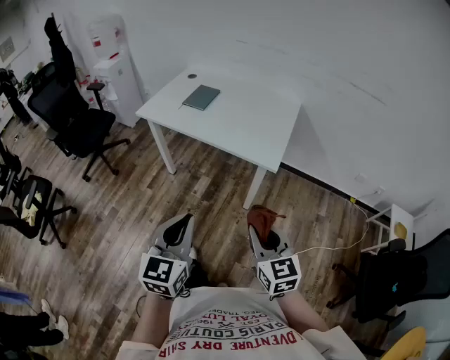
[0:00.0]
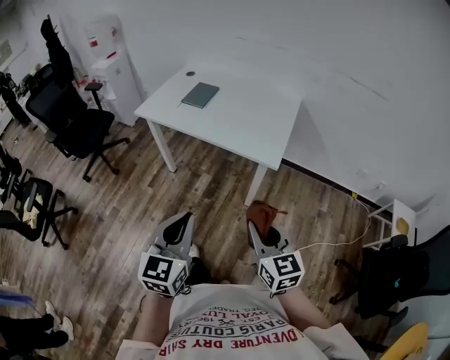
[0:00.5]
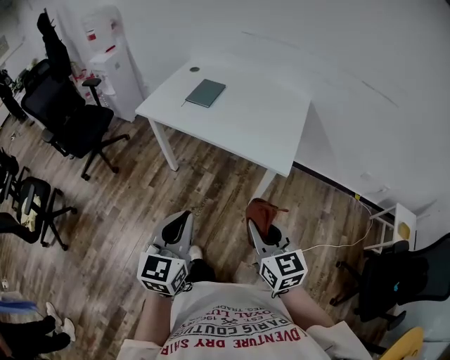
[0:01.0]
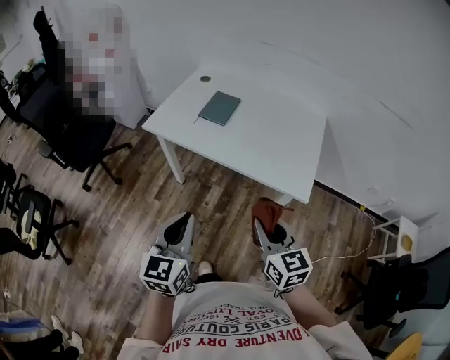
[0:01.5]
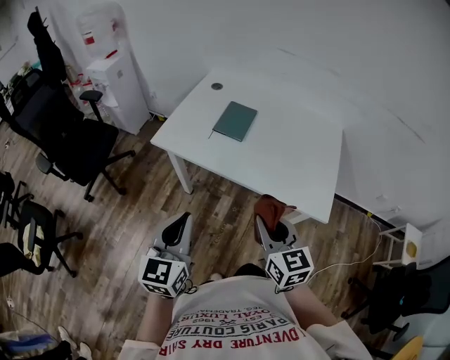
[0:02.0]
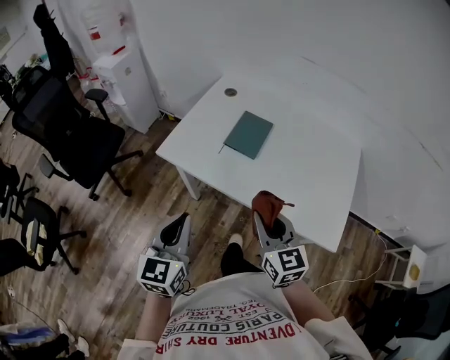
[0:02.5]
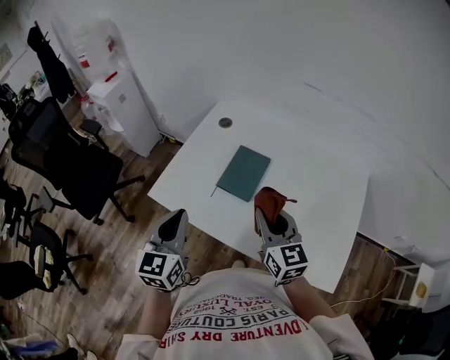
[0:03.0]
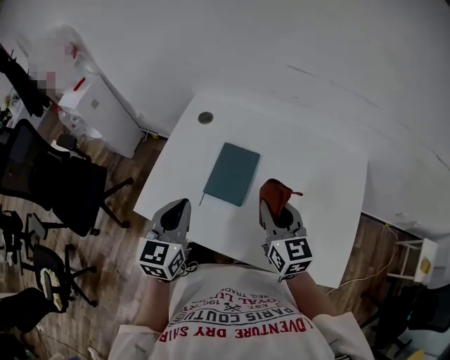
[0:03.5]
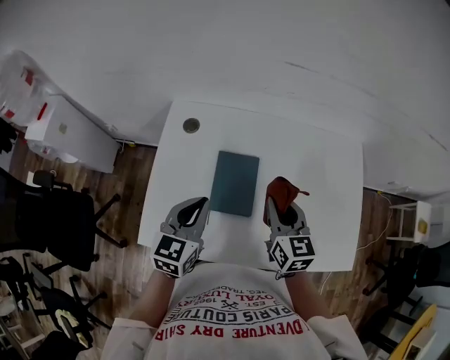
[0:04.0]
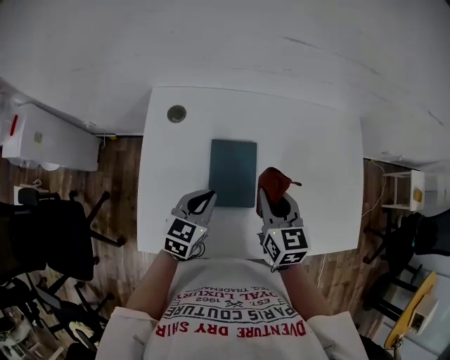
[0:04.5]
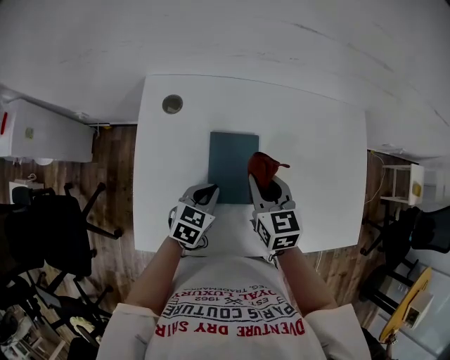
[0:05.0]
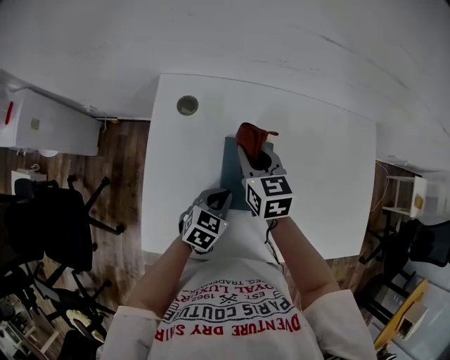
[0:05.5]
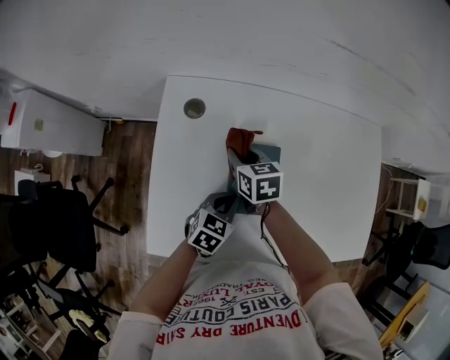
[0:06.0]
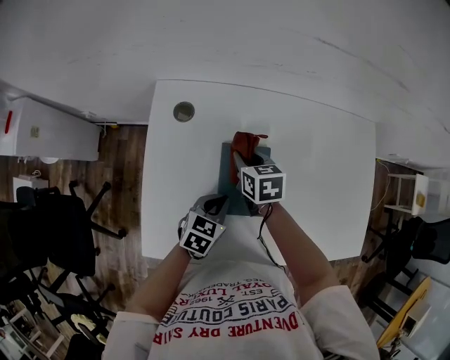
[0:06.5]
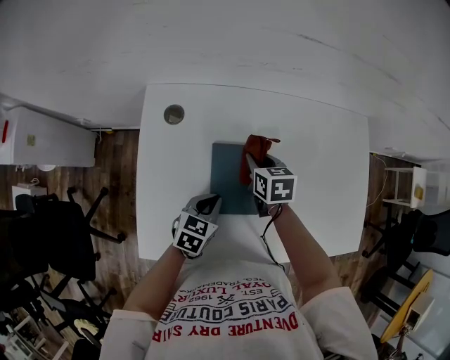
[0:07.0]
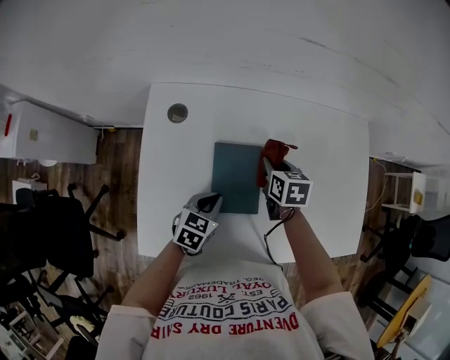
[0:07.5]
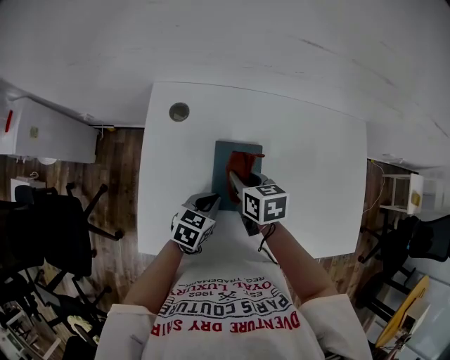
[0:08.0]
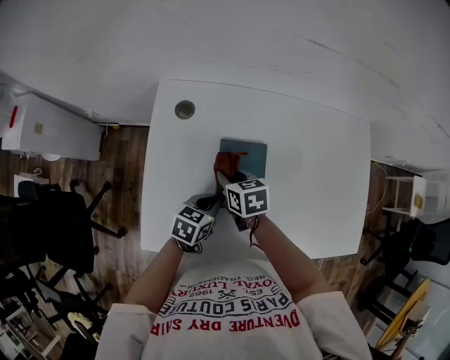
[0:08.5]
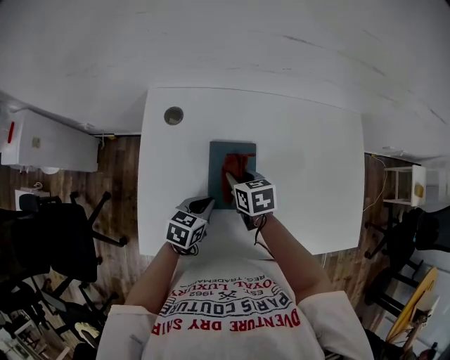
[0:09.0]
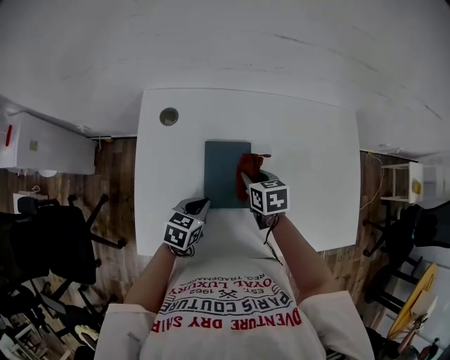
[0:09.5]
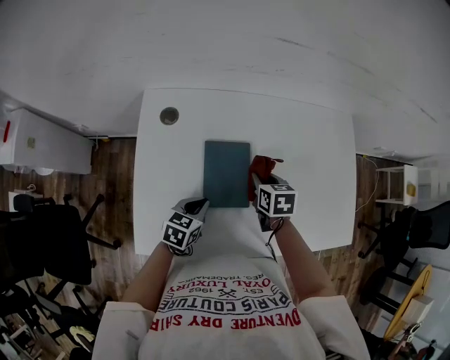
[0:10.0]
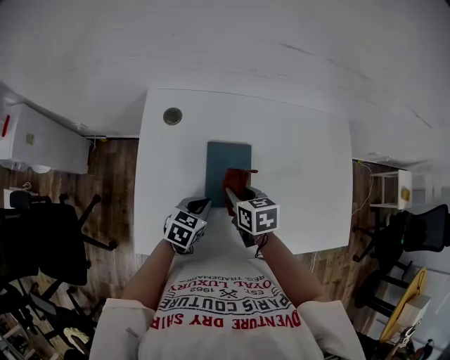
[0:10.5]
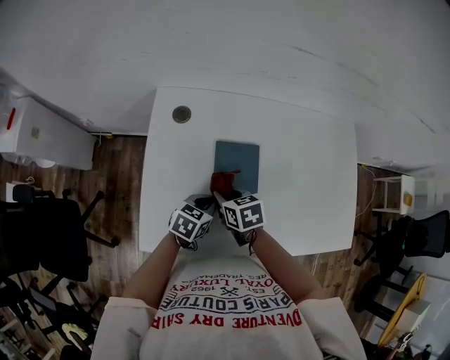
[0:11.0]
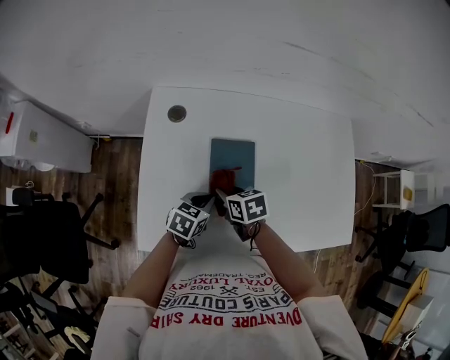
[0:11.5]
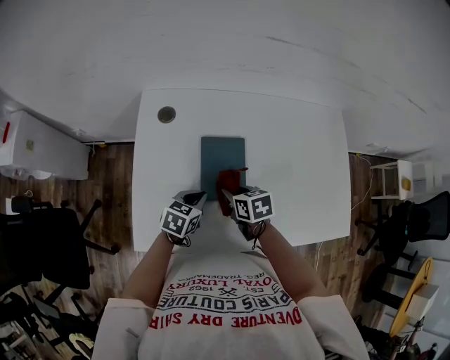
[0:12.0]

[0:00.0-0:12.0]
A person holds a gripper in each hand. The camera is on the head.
0:00.0 to 0:02.0: The grippers both shift forward and to the left by roughly 40 cm.
0:02.0 to 0:04.0: Both grippers are carried roughly 50 cm. The left gripper changes its angle by some 30 degrees. The right gripper rotates roughly 20 degrees.
0:04.0 to 0:06.0: The right gripper moves to the left, downward and forward, roughly 25 cm, and turns by roughly 30 degrees, while the left gripper goes about 20 cm downward, and rotates about 30 degrees.
0:06.0 to 0:08.0: The right gripper heads to the right and backward, covering roughly 10 cm.
0:08.0 to 0:10.0: The right gripper moves to the right, some 10 cm.
0:10.0 to 0:12.0: The right gripper travels to the left and backward by some 10 cm.

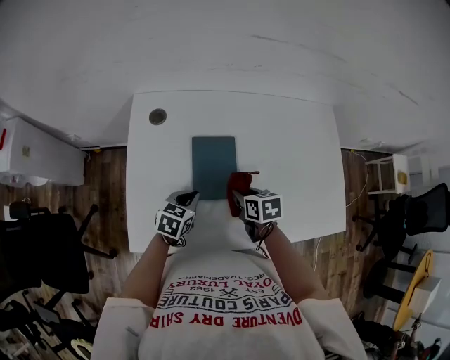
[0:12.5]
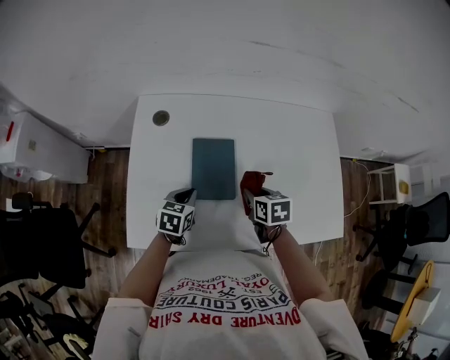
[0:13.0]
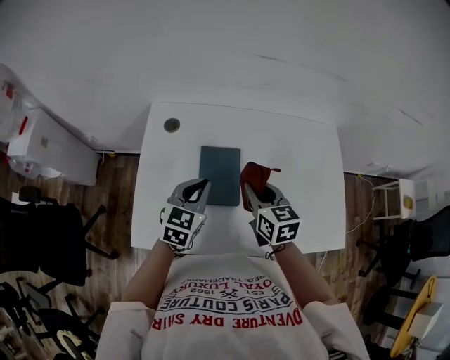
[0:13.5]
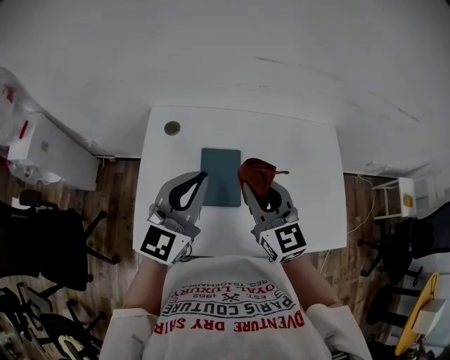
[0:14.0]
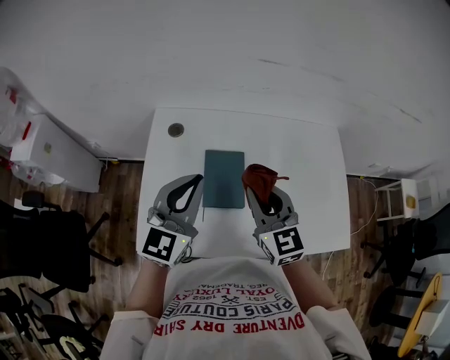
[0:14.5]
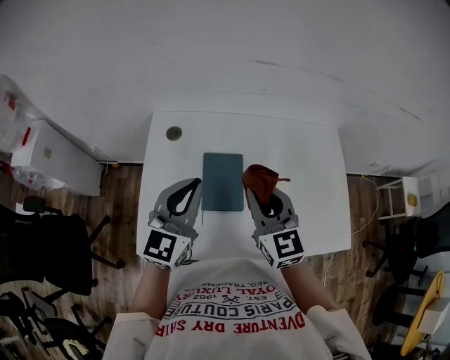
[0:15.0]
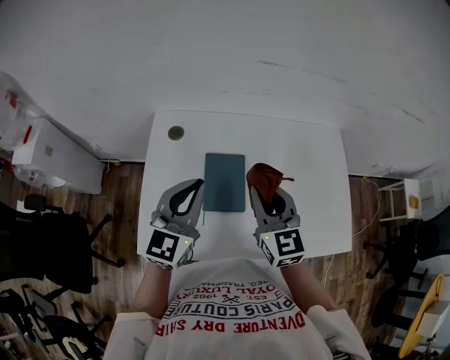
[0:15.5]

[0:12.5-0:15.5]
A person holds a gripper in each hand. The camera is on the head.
0:12.5 to 0:14.0: Both grippers travel together upward, roughly 30 cm. The right gripper tips its fingers upward by some 40 degrees, while the left gripper tilts its fingers approximately 50 degrees upward.
0:14.0 to 0:15.5: The grippers stay close to where they were, moving slightly.

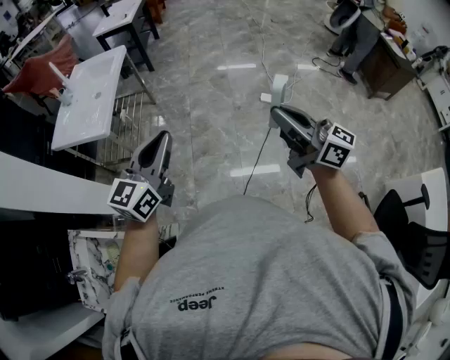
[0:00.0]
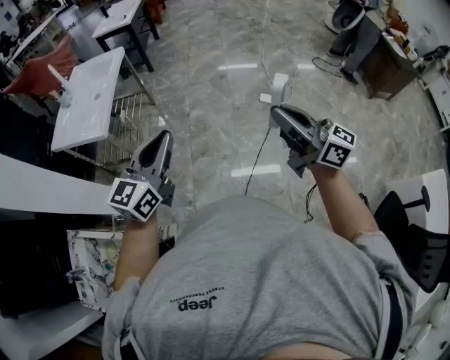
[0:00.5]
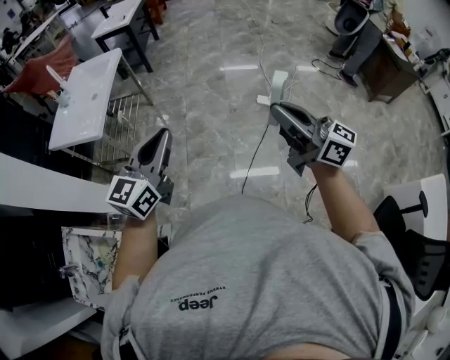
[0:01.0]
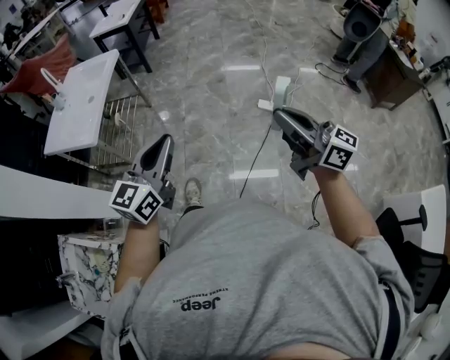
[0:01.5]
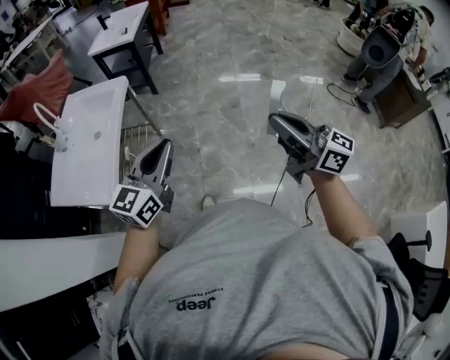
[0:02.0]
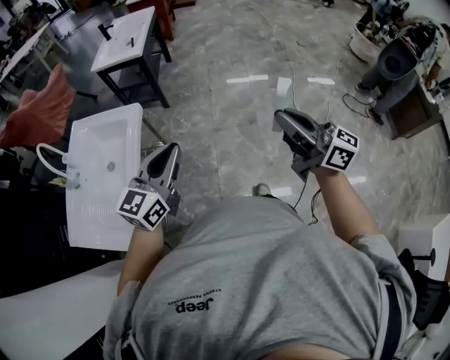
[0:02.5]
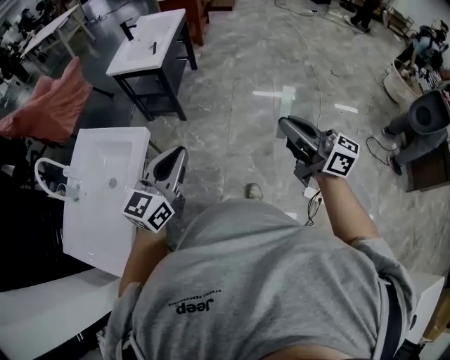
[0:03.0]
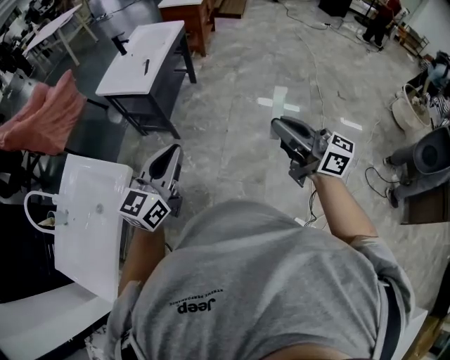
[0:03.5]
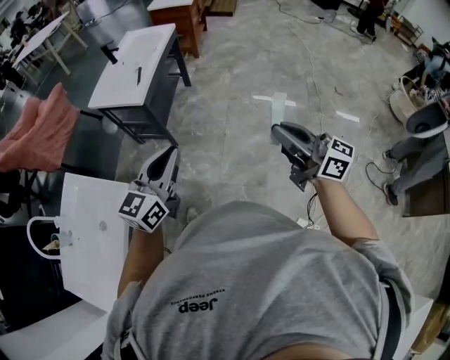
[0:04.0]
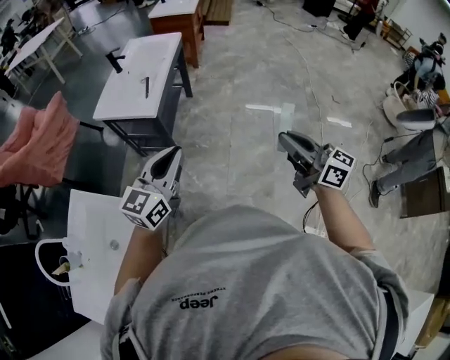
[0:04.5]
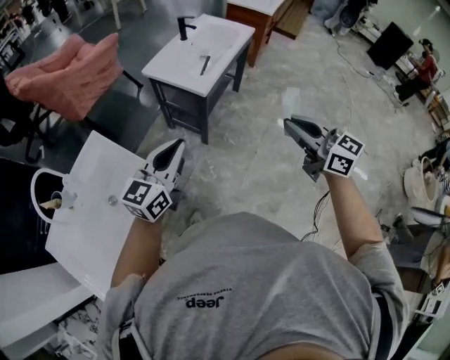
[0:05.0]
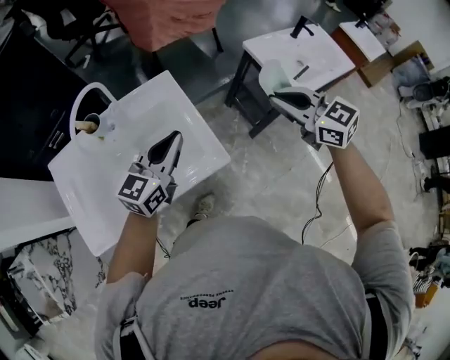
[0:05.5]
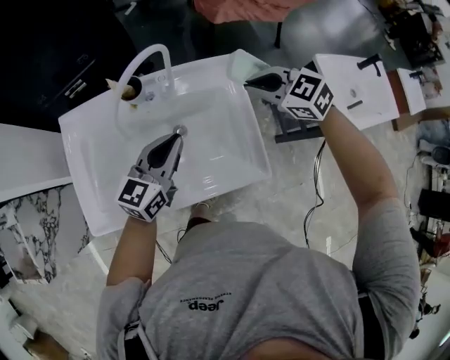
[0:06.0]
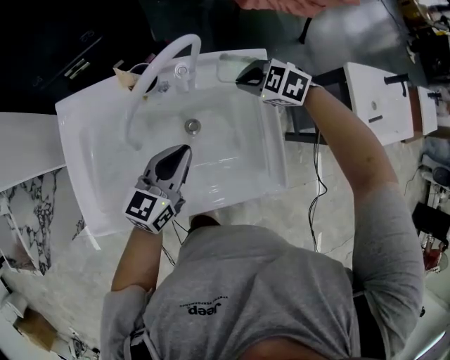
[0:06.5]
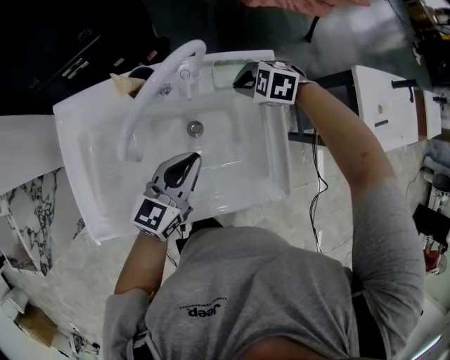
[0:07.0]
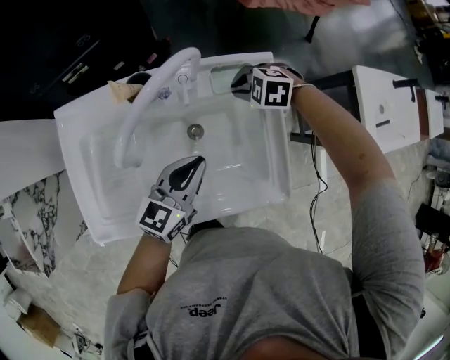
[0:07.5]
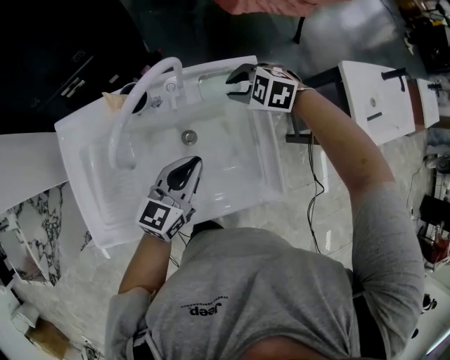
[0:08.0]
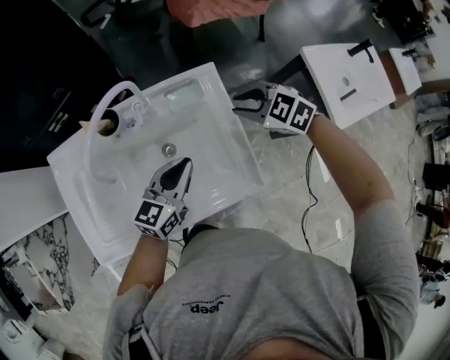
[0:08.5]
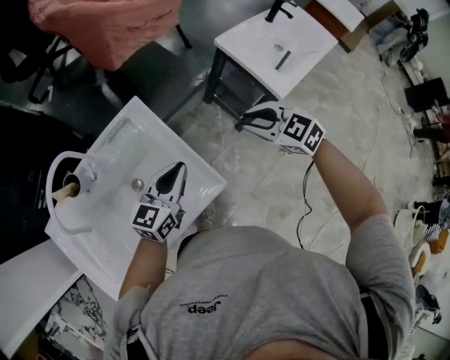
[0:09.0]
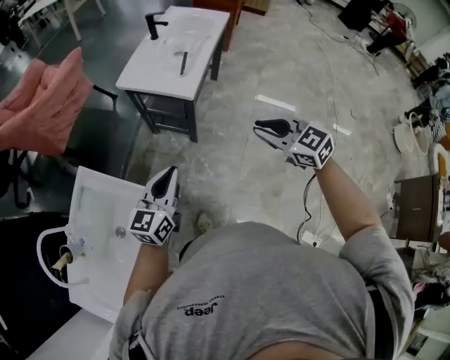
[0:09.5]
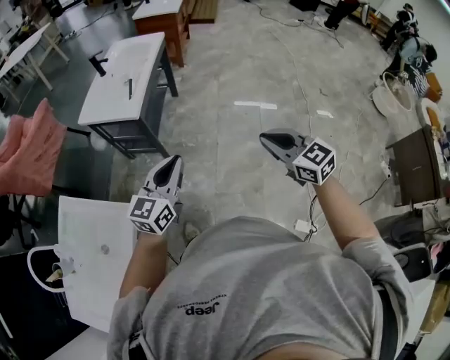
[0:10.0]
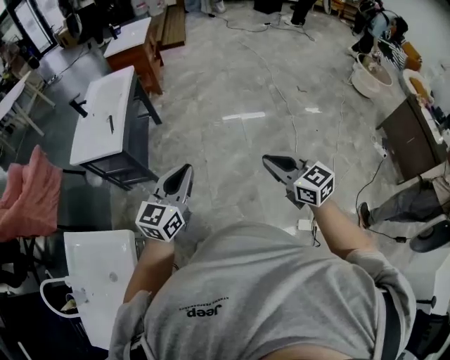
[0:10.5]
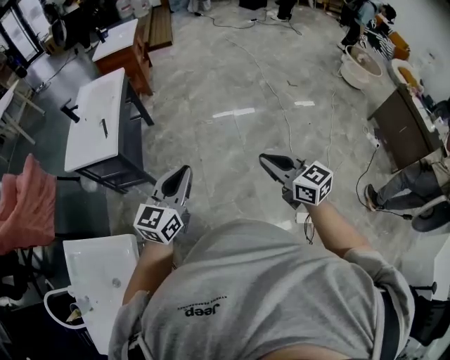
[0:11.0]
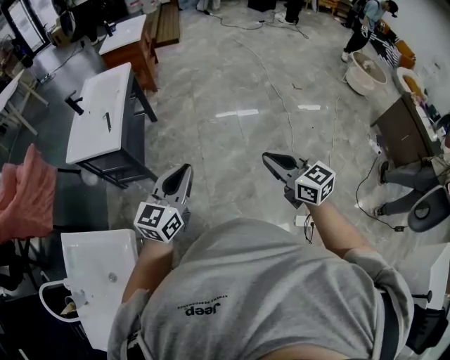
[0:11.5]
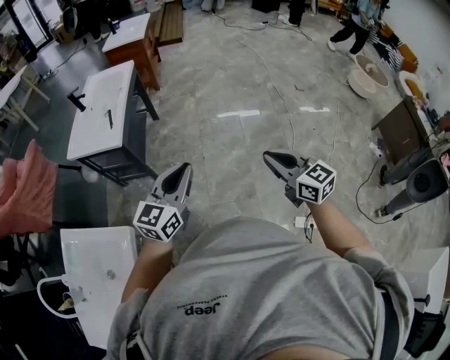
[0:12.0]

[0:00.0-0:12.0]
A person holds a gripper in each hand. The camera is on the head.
0:00.0 to 0:02.0: The two grippers go approximately 35 cm forward.
0:02.0 to 0:04.0: The pair of grippers is taken forward, about 70 cm.
0:04.0 to 0:06.0: Both grippers are carried some 70 cm. The right gripper angles its fingers downward, by approximately 50 degrees, while the left gripper rotates about 60 degrees.
0:06.0 to 0:08.0: The left gripper moves downward, about 5 cm. Meanwhile the right gripper travels downward by about 15 cm, swivels some 30 degrees, and opens.
0:08.0 to 0:10.0: Both grippers are carried some 70 cm. The right gripper points its fingers roughly 40 degrees further upward, and closes its fingers. Meanwhile the left gripper swivels about 60 degrees.
0:10.0 to 0:12.0: The right gripper travels to the right and backward by about 10 cm, and turns by approximately 20 degrees; the left gripper heads to the right, covering approximately 10 cm.
